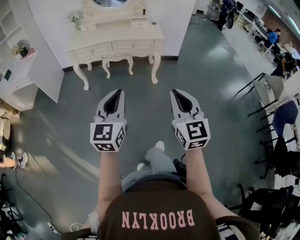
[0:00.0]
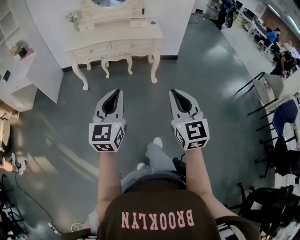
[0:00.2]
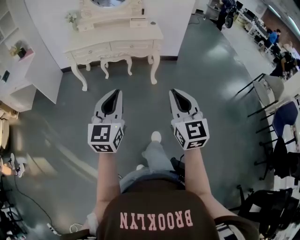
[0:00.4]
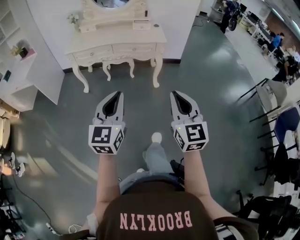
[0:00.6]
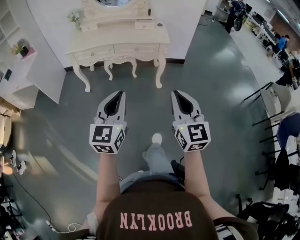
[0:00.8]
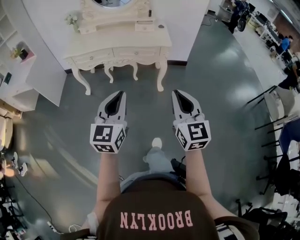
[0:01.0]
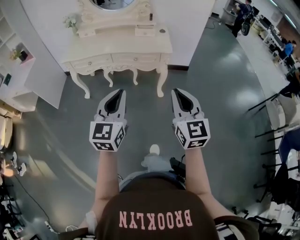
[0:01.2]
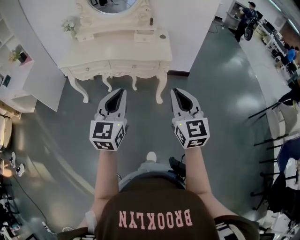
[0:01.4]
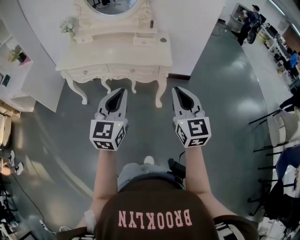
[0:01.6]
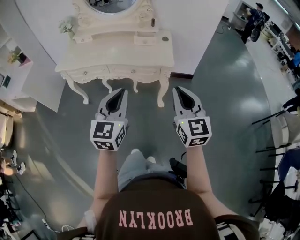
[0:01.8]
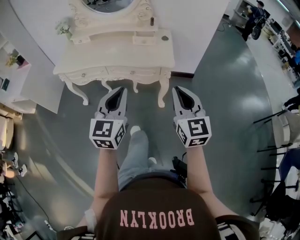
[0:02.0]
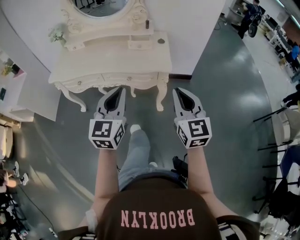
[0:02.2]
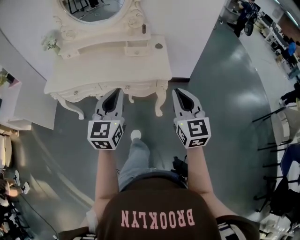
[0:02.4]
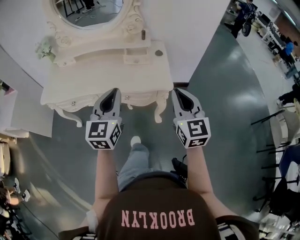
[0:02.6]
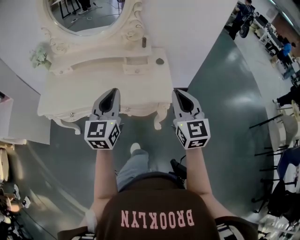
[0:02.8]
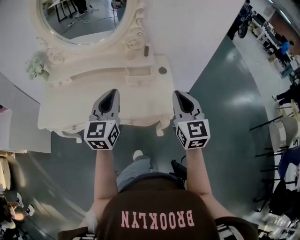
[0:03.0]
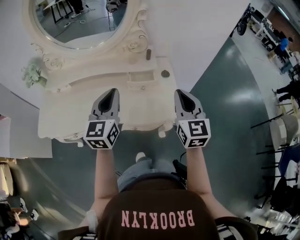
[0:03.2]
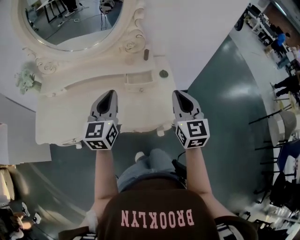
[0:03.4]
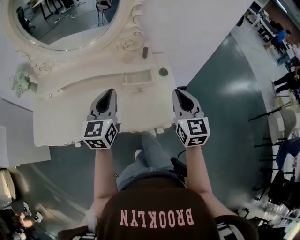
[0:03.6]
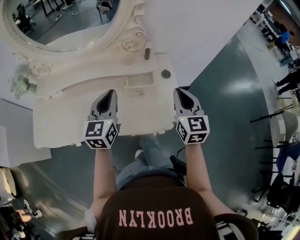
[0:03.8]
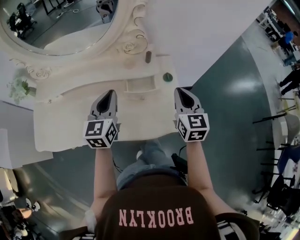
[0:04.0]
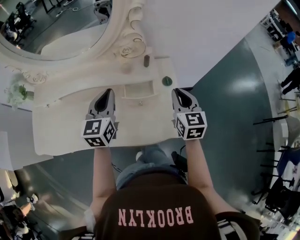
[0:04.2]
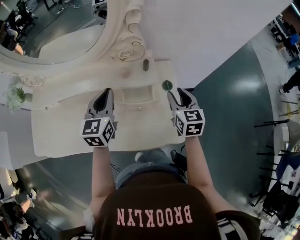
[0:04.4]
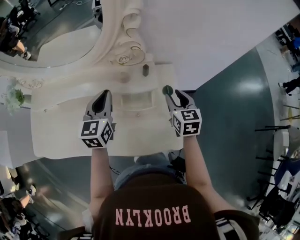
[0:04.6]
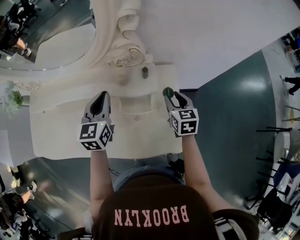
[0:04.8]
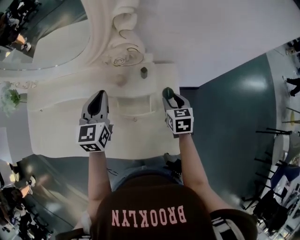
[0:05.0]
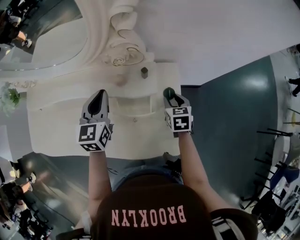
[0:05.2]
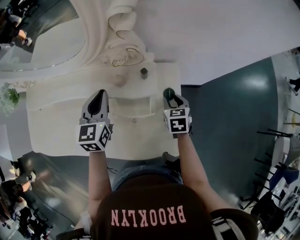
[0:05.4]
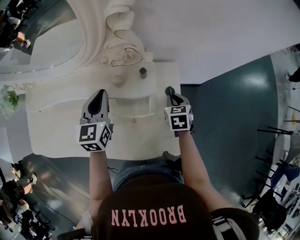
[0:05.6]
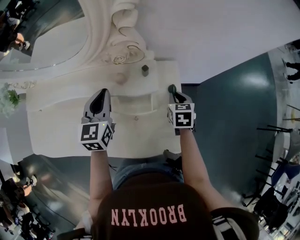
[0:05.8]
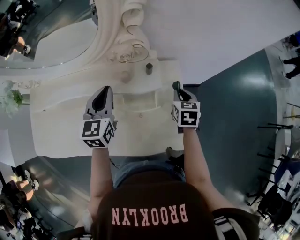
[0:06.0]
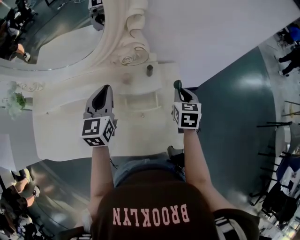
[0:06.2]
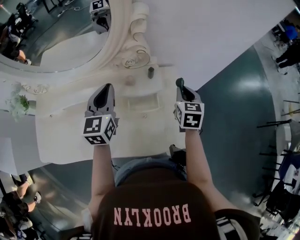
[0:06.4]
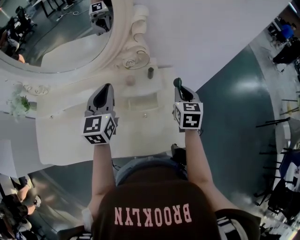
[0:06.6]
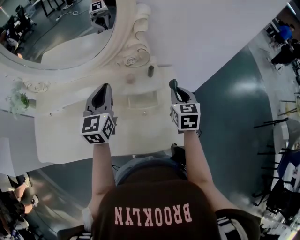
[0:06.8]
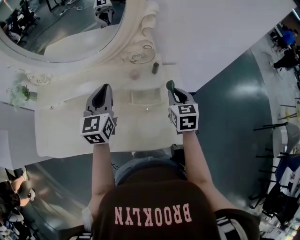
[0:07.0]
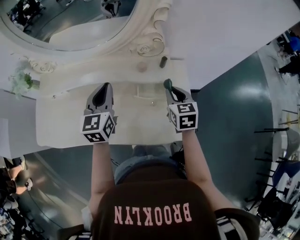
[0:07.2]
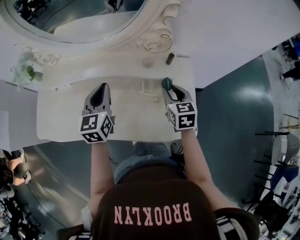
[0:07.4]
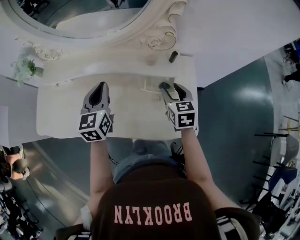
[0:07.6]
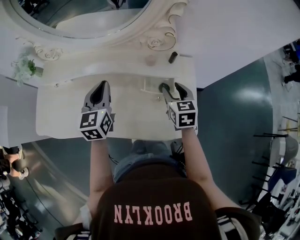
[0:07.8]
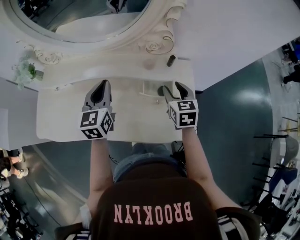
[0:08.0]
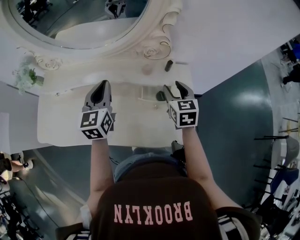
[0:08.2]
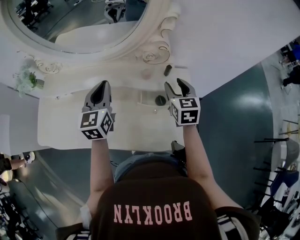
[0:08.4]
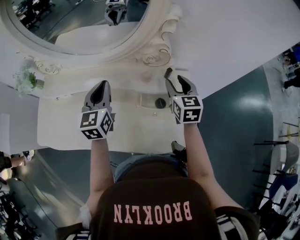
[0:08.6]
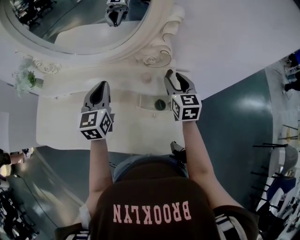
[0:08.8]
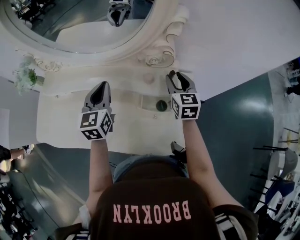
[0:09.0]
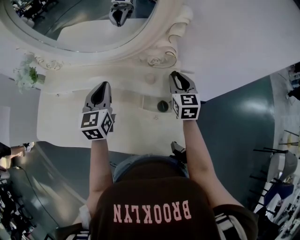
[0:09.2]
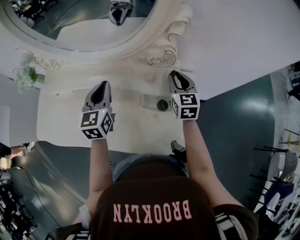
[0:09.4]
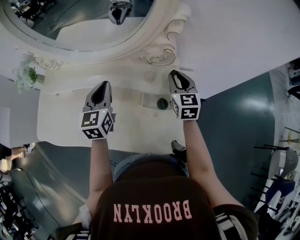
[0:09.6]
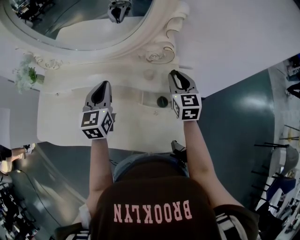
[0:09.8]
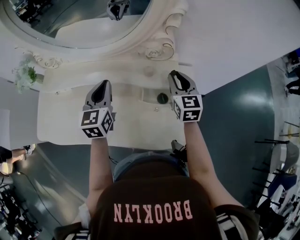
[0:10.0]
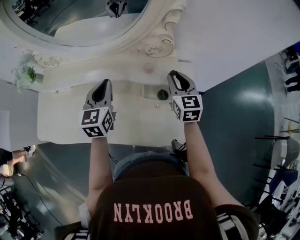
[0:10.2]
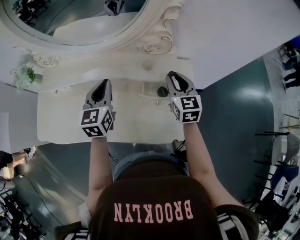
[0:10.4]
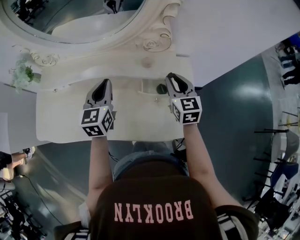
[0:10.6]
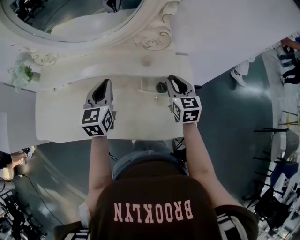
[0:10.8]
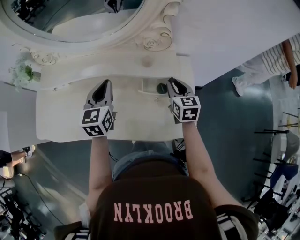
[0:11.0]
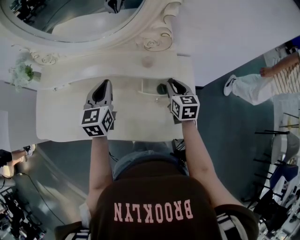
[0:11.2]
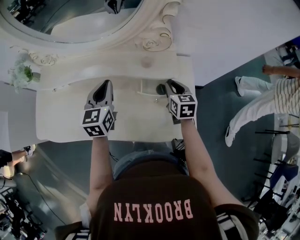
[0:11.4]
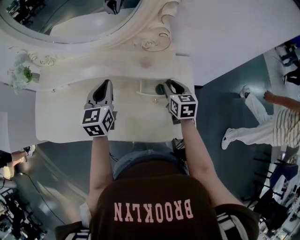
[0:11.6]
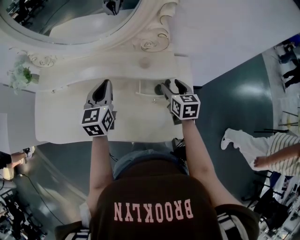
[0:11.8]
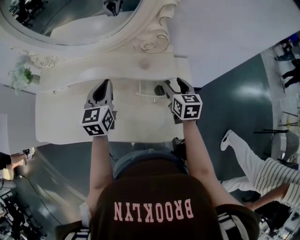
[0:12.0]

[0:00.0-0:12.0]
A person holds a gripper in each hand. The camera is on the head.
0:00.0 to 0:01.6: The grippers both shift forward by some 40 cm.
0:01.6 to 0:03.0: The two grippers go approximately 40 cm forward.
0:03.0 to 0:04.4: The right gripper travels forward and downward by about 30 cm, turns by approximately 20 degrees, and opens up. The left gripper heads forward, covering some 25 cm.
0:04.4 to 0:06.0: The right gripper travels downward and forward by some 10 cm, changes its angle by roughly 20 degrees, and closes its fingers. Meanwhile the left gripper shifts roughly 5 cm forward.
0:06.0 to 0:07.6: The left gripper moves to the left and backward, roughly 15 cm, while the right gripper heads to the left, backward and upward, covering about 15 cm, and opens its fingers.
0:07.6 to 0:09.0: The left gripper goes about 5 cm forward; the right gripper moves forward, roughly 10 cm.
0:09.0 to 0:10.4: The right gripper shifts some 5 cm backward.
0:10.4 to 0:12.0: The right gripper is displaced downward by approximately 5 cm, and opens its fingers.

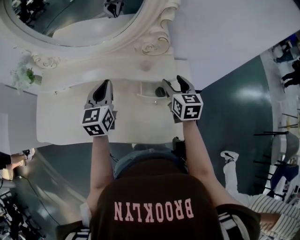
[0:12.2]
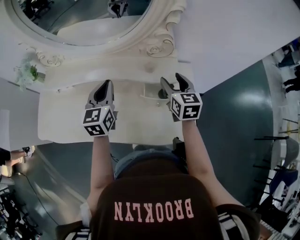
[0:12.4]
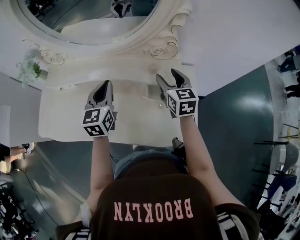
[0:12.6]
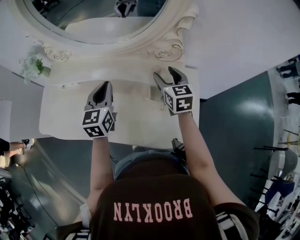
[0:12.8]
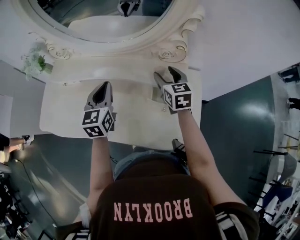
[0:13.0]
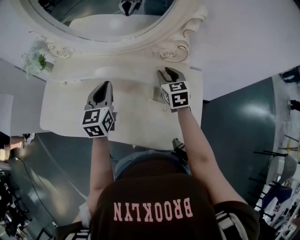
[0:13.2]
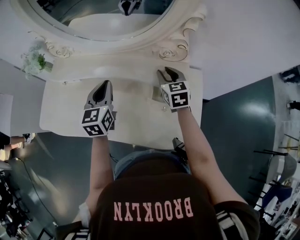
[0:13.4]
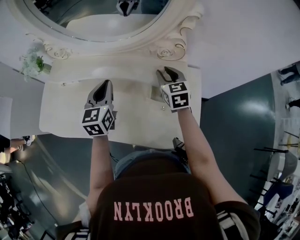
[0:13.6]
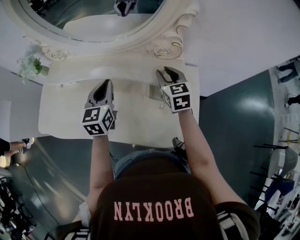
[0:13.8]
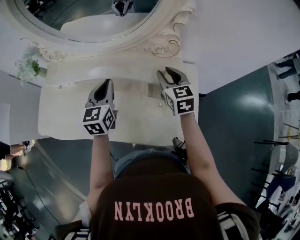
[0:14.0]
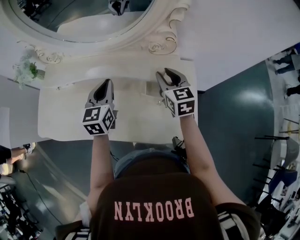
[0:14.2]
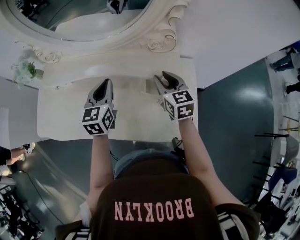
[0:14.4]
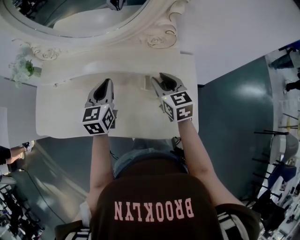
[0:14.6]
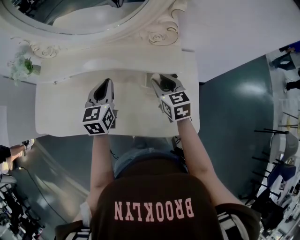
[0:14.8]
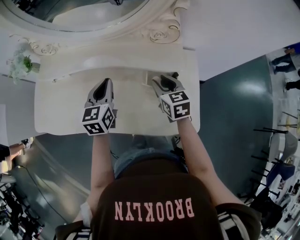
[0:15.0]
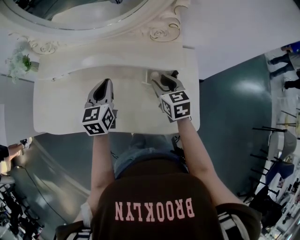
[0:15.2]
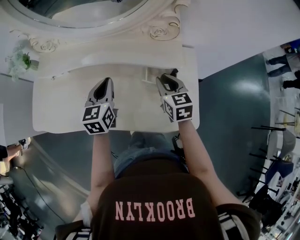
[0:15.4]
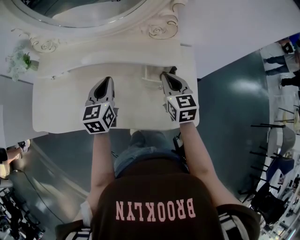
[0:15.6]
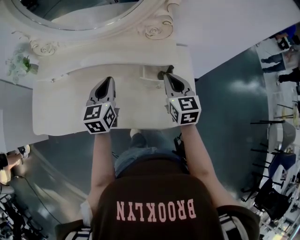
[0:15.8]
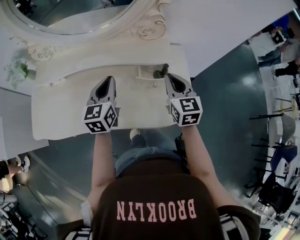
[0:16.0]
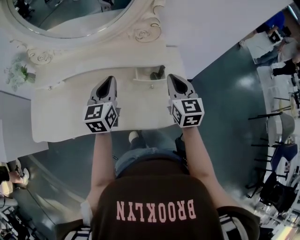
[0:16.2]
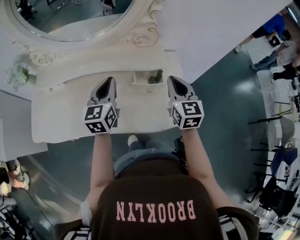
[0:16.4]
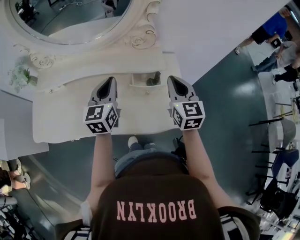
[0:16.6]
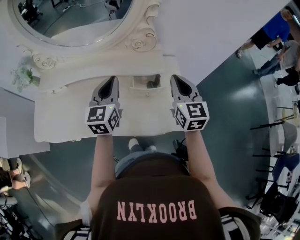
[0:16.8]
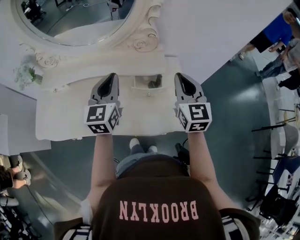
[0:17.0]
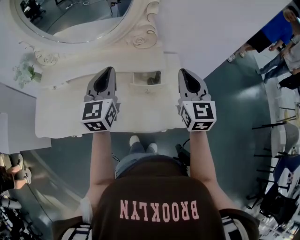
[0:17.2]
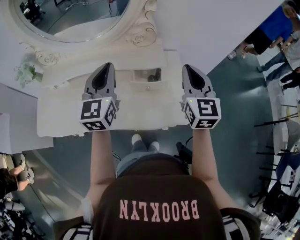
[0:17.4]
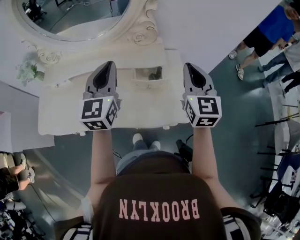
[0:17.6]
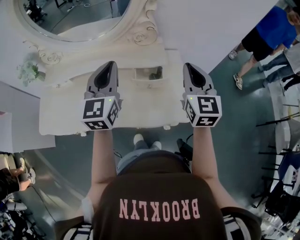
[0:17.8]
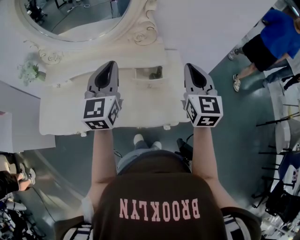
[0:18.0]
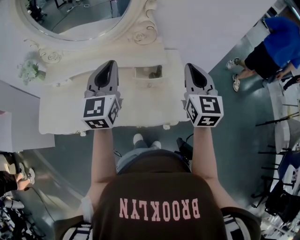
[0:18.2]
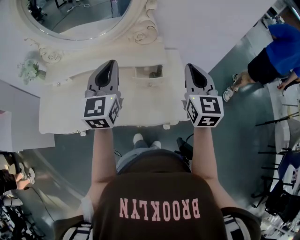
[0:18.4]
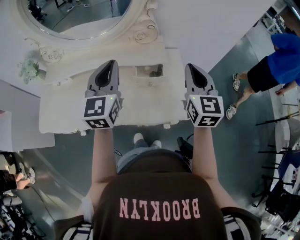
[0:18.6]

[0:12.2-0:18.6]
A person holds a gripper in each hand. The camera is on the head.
0:12.2 to 0:13.8: The right gripper travels to the left and forward by roughly 10 cm, and closes up.
0:13.8 to 0:15.4: The left gripper changes place by approximately 5 cm. Meanwhile the right gripper is displaced backward by approximately 10 cm.
0:15.4 to 0:17.0: Both grippers move upward and to the right, about 15 cm. The right gripper swivels roughly 30 degrees.
0:17.0 to 0:18.6: The left gripper is displaced upward by some 5 cm, while the right gripper ends up approximately 5 cm from where it was.

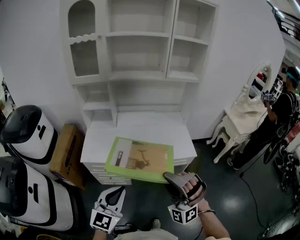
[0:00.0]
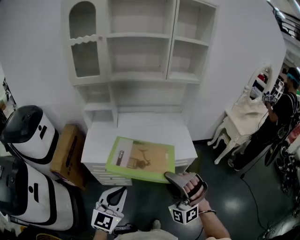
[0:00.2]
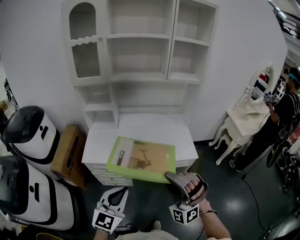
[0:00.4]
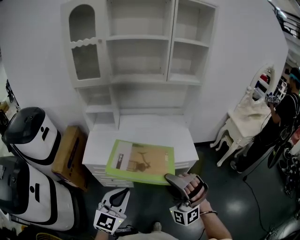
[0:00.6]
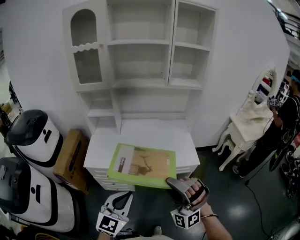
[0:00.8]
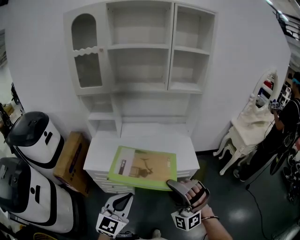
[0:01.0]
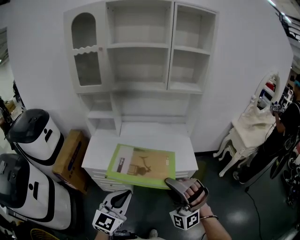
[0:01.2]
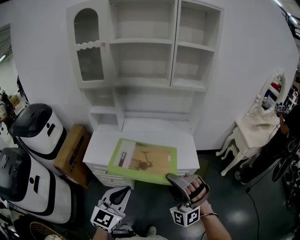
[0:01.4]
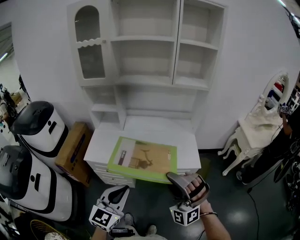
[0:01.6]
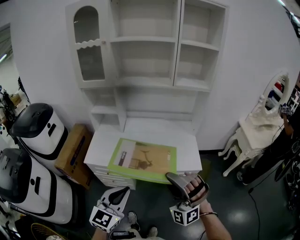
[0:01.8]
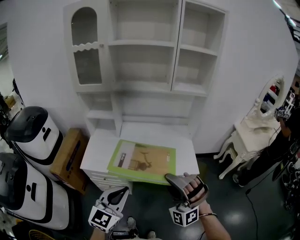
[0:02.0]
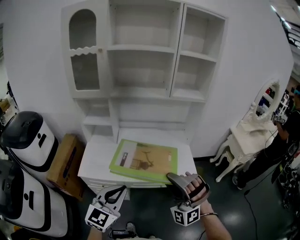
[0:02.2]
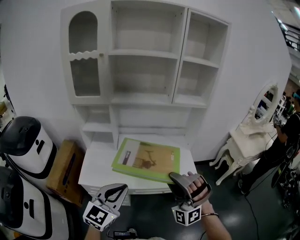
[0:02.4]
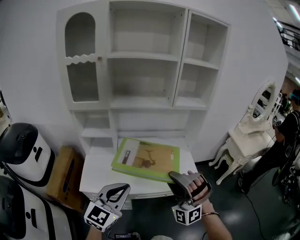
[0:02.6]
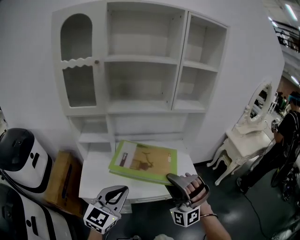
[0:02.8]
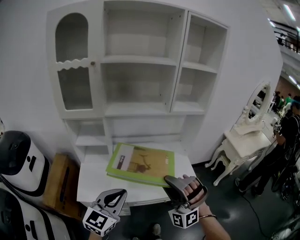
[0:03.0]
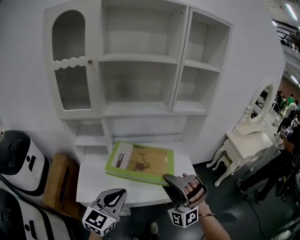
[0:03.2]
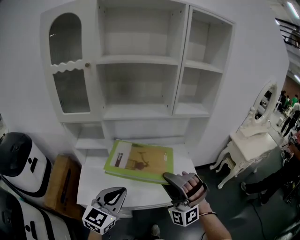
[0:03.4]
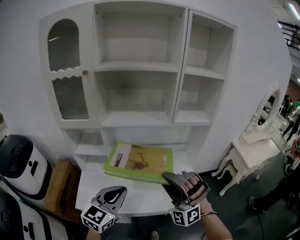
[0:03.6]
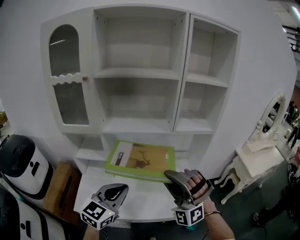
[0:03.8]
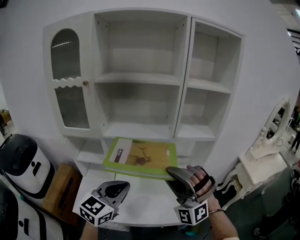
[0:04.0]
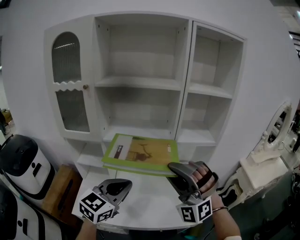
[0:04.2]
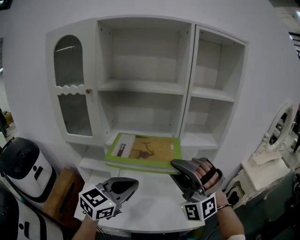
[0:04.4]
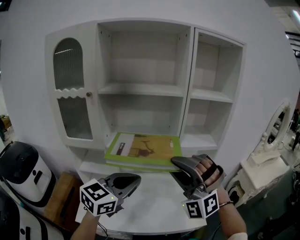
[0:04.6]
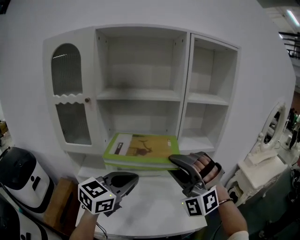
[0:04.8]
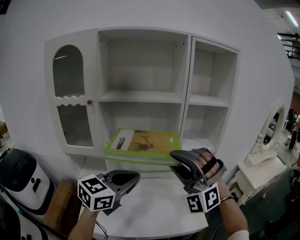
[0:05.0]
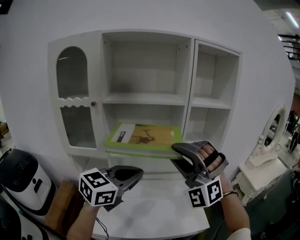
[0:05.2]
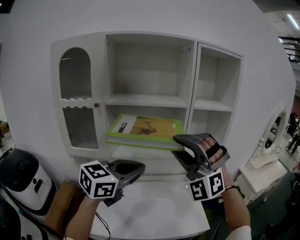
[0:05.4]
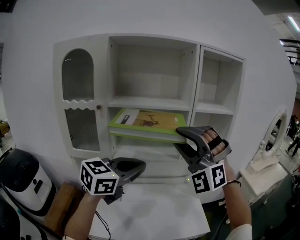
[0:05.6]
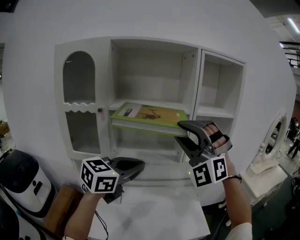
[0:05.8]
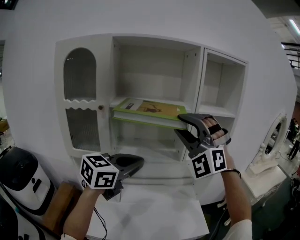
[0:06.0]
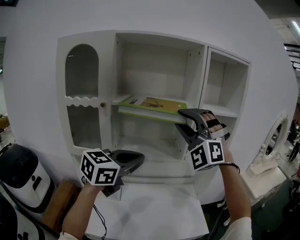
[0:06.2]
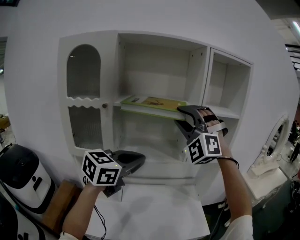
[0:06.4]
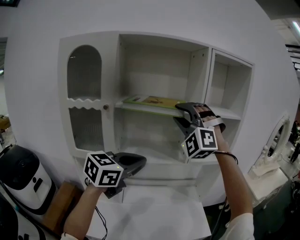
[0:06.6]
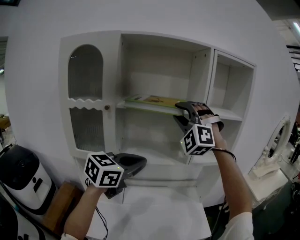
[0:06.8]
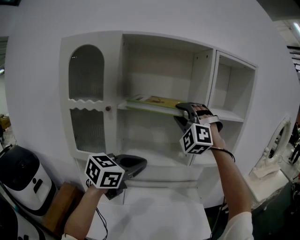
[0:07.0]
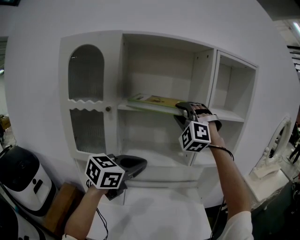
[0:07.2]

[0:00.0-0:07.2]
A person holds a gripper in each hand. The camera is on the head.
0:00.0 to 0:01.4: The left gripper shifts by about 10 cm.
0:01.4 to 0:02.8: The left gripper moves about 20 cm.
0:02.8 to 0:04.4: The left gripper ends up approximately 25 cm from where it was.
0:04.4 to 0:05.8: The left gripper heads upward, covering approximately 10 cm.
0:05.8 to 0:07.2: The left gripper moves some 5 cm.
